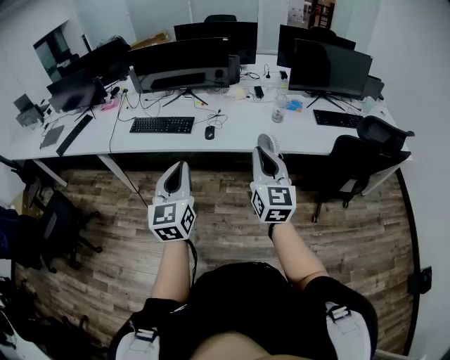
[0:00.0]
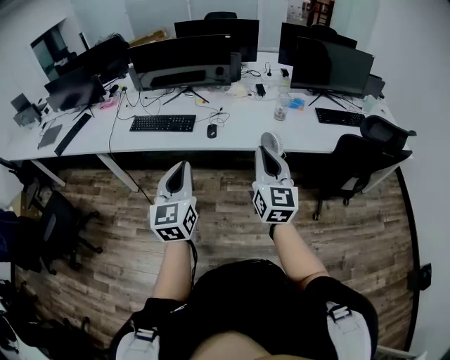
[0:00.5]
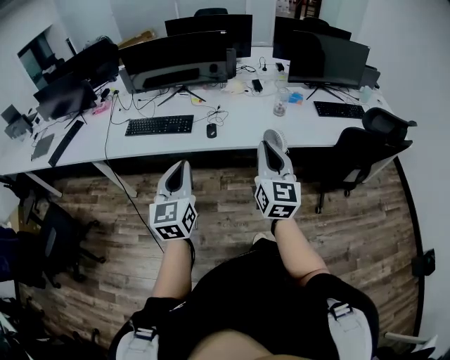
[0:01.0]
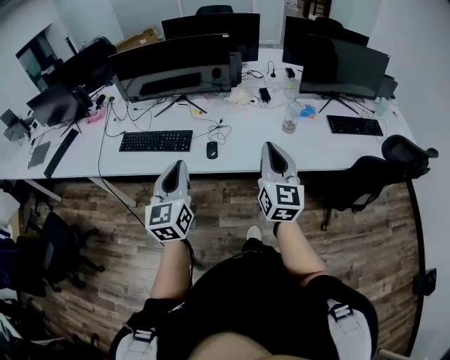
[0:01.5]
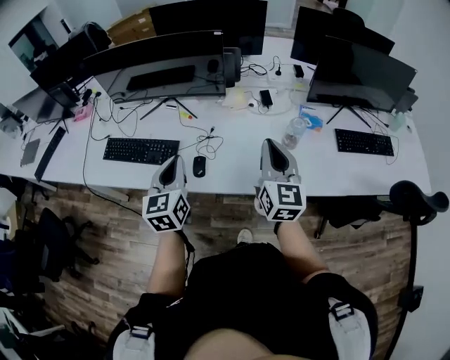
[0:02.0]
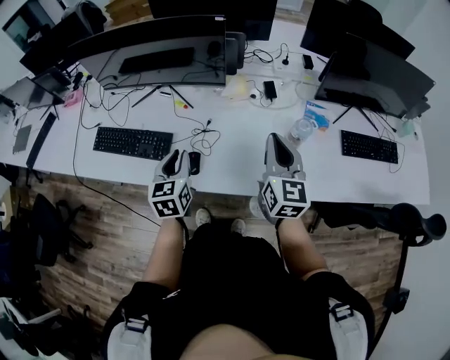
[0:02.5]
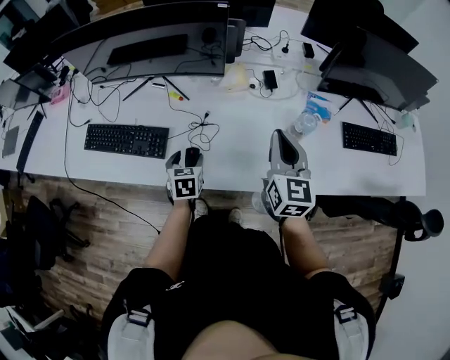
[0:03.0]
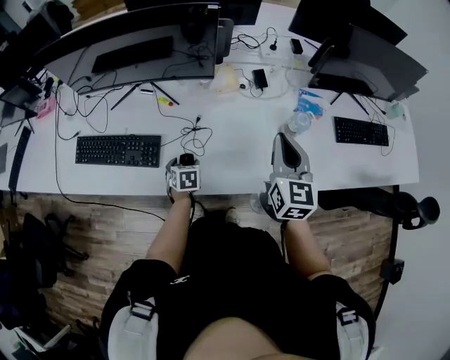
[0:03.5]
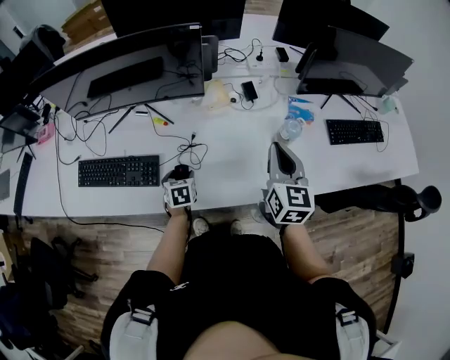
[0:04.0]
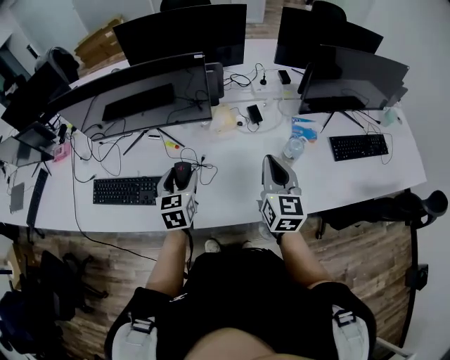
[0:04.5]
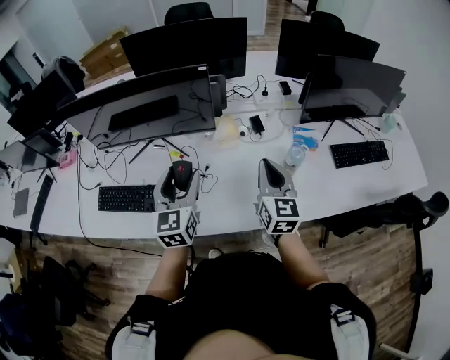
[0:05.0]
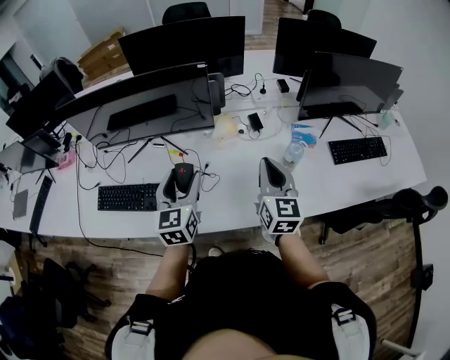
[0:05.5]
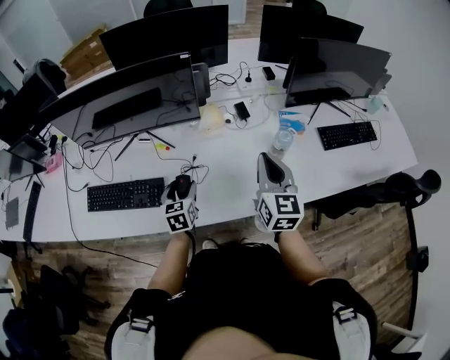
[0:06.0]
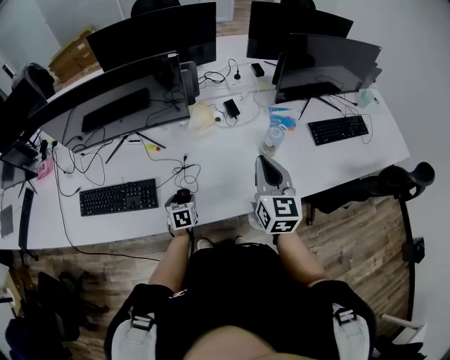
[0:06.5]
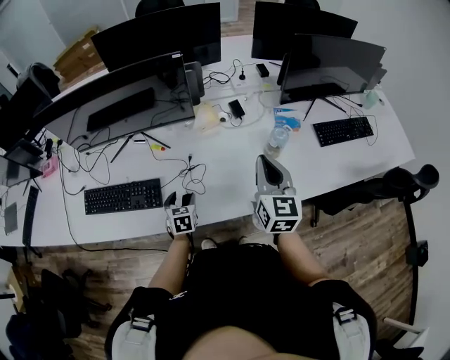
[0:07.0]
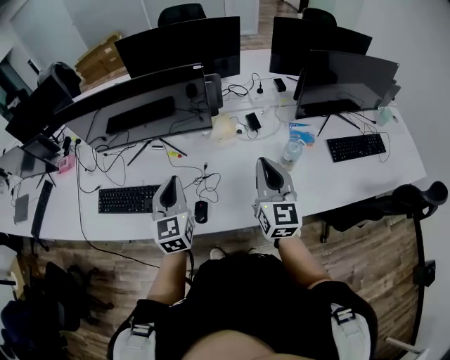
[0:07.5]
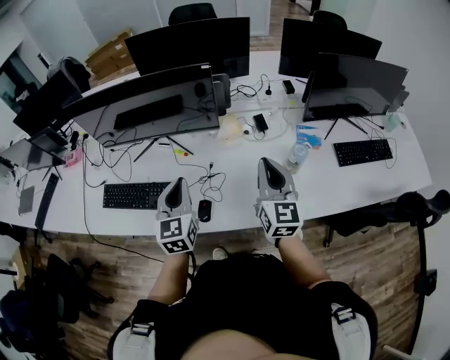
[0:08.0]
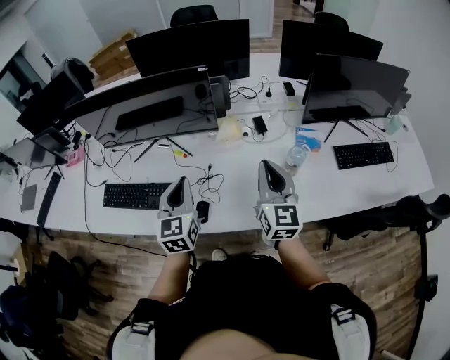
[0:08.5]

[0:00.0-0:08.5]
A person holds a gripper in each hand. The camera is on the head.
0:00.0 to 0:02.0: The grippers both shift forward by some 35 cm.
0:02.0 to 0:04.0: The right gripper moves forward and downward, approximately 10 cm. The left gripper is displaced downward and forward by some 30 cm, angles its fingers downward, by approximately 40 degrees, and opens.
0:04.0 to 0:06.5: The left gripper travels upward and back again, roughly 30 cm each way.
0:06.5 to 0:08.5: The left gripper shifts roughly 30 cm upward, points its fingers roughly 40 degrees further upward, and closes its fingers.

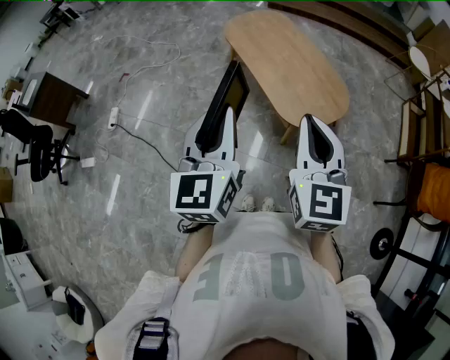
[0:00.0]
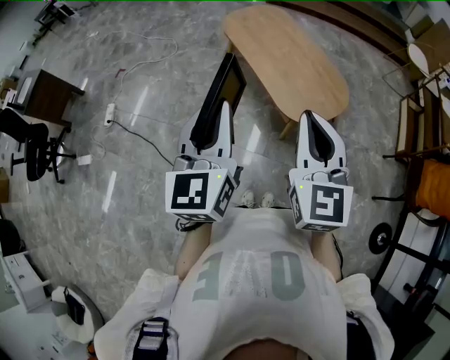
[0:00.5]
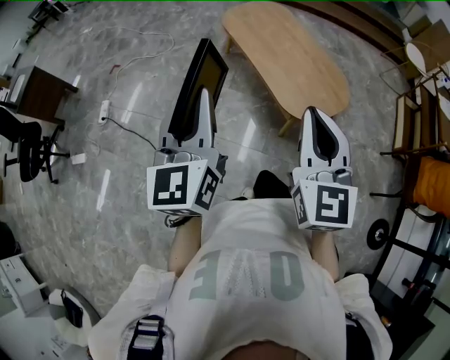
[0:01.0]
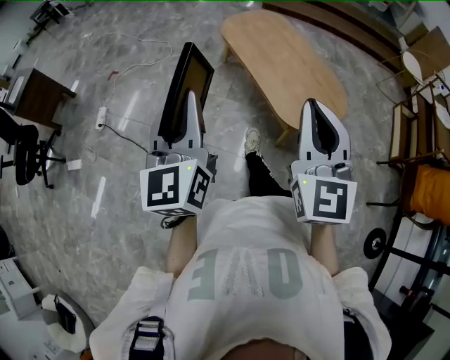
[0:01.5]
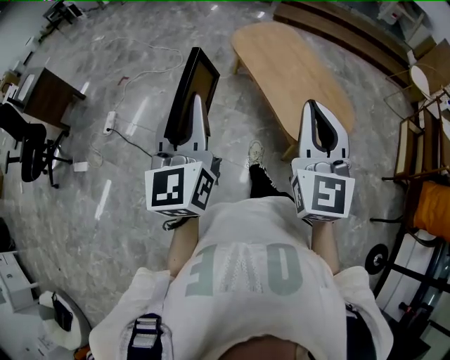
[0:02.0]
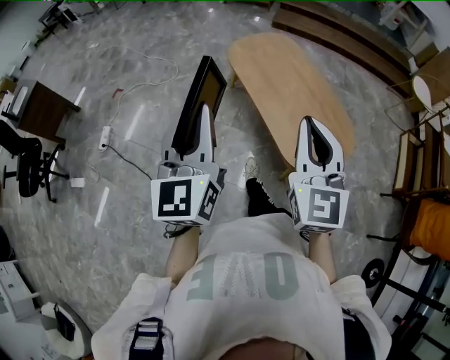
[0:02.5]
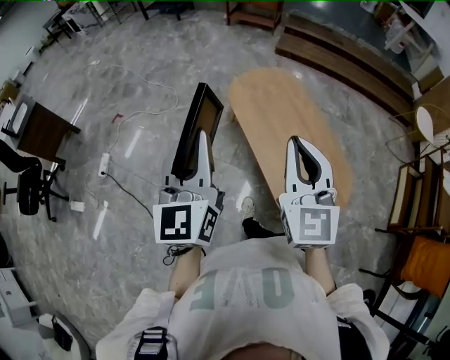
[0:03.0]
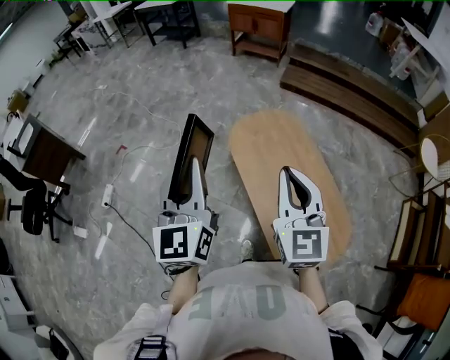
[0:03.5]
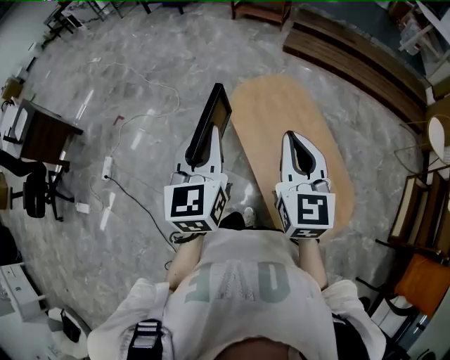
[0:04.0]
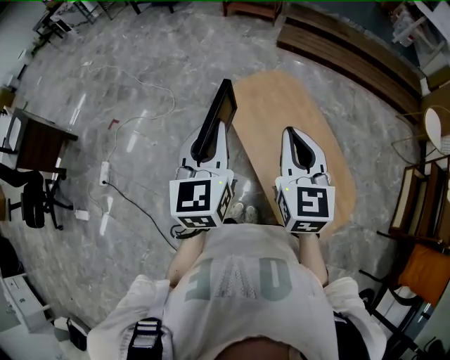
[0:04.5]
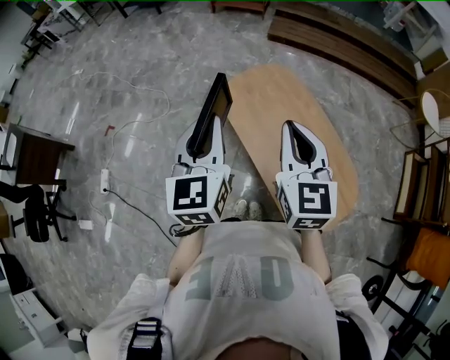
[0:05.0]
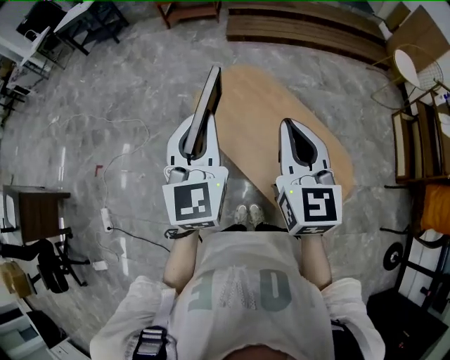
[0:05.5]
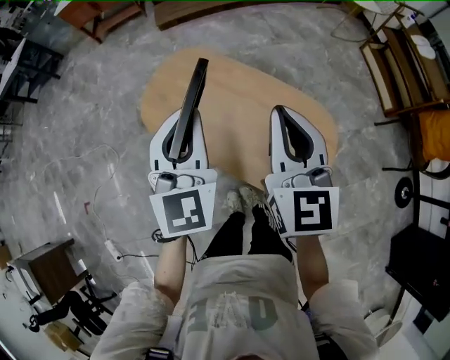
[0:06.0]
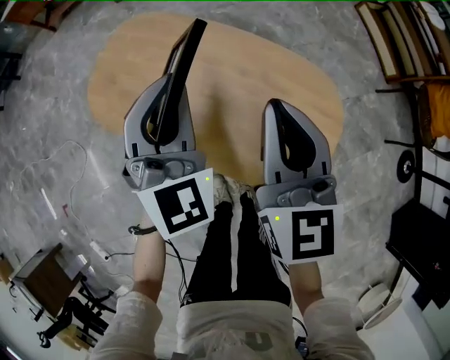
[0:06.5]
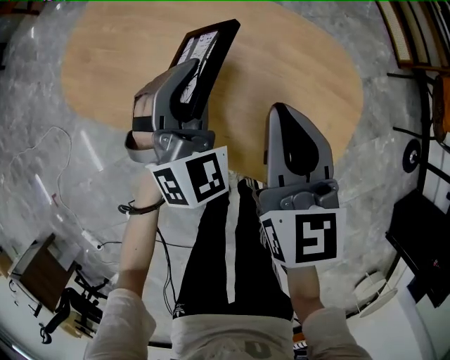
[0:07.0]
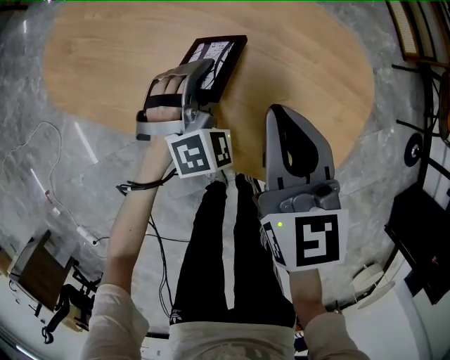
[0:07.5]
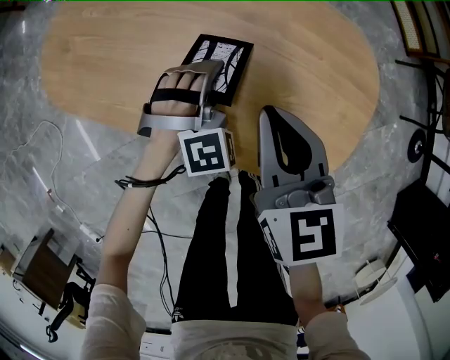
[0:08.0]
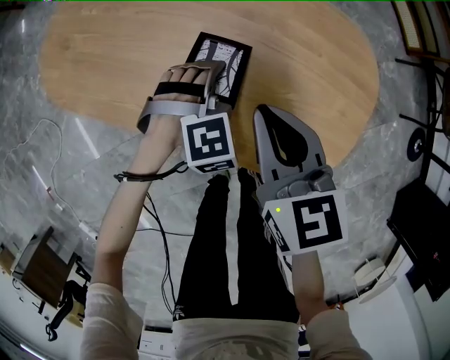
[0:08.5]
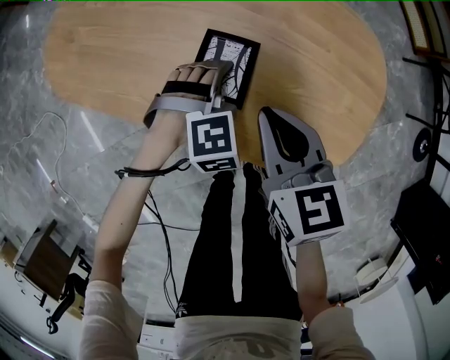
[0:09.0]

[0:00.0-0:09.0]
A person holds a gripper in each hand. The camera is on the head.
0:00.0 to 0:02.0: The right gripper is displaced forward and to the left by some 10 cm, while the left gripper shifts about 15 cm to the left and forward.
0:02.0 to 0:04.5: Both grippers are carried forward, approximately 50 cm.
0:04.5 to 0:07.0: Both grippers travel together downward, about 35 cm. The left gripper rotates around the line of its fingers by roughly 60 degrees, clockwise from behind. Meanwhile the right gripper swivels roughly 40 degrees.
0:07.0 to 0:09.0: The right gripper shifts roughly 10 cm downward, and turns by some 20 degrees, while the left gripper heads downward, covering some 20 cm, points its fingers roughly 40 degrees further downward, and opens up.

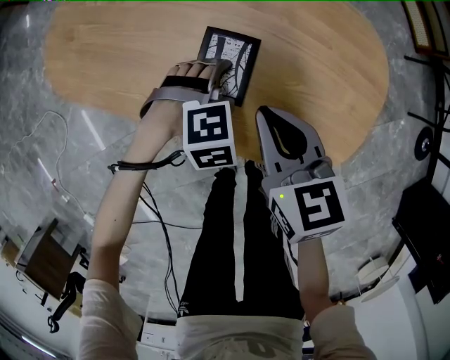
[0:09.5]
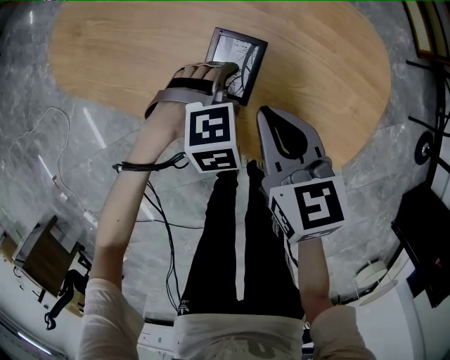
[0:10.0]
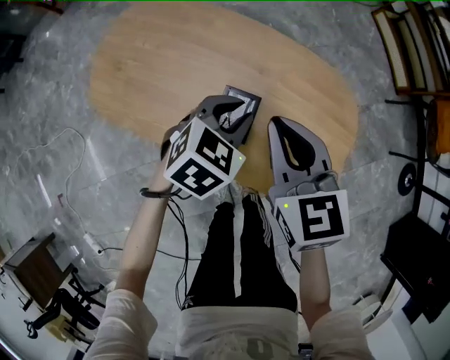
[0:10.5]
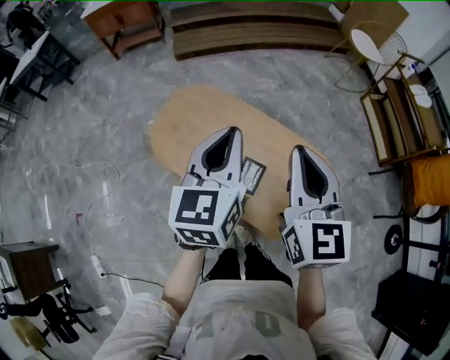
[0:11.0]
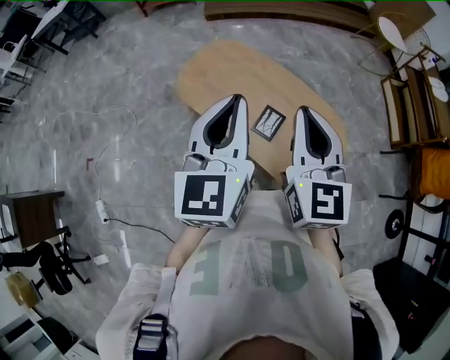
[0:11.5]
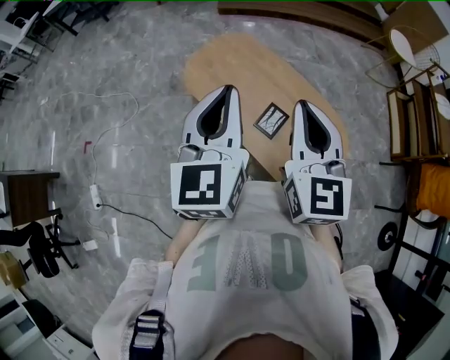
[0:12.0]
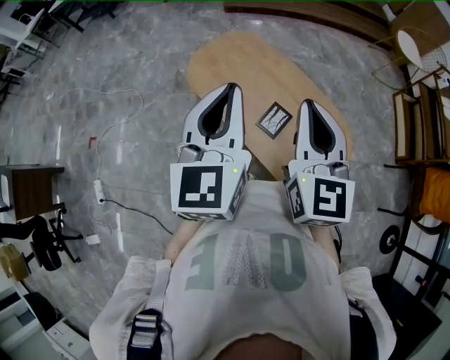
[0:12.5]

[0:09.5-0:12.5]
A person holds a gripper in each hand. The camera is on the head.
0:09.5 to 0:11.0: Both grippers move upward, approximately 50 cm. The right gripper angles its fingers upward, by approximately 30 degrees, while the left gripper angles its fingers upward, by approximately 60 degrees, and closes its fingers.
0:11.0 to 0:12.5: Both grippers travel together backward and to the left, some 15 cm. The left gripper rotates about 20 degrees.

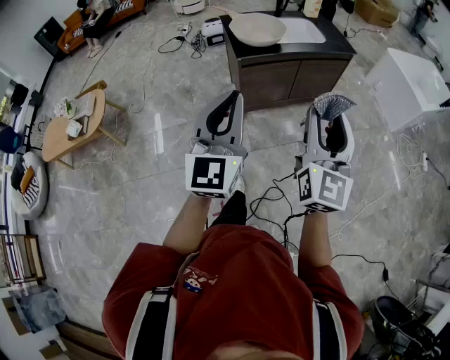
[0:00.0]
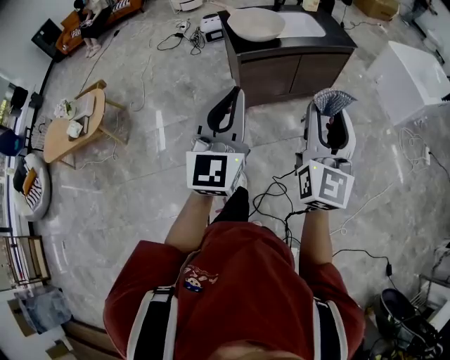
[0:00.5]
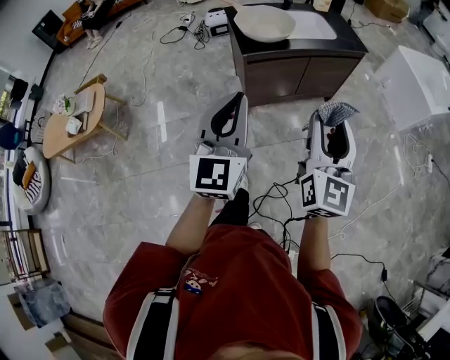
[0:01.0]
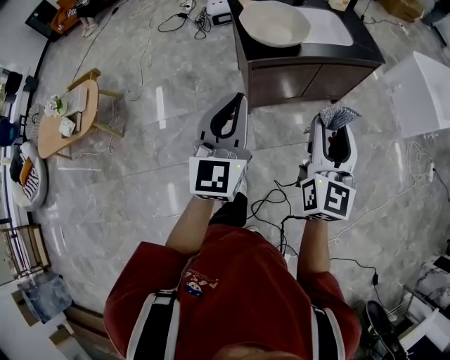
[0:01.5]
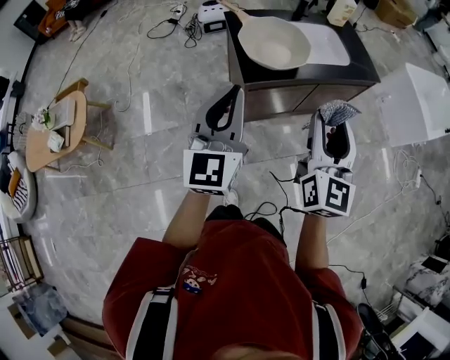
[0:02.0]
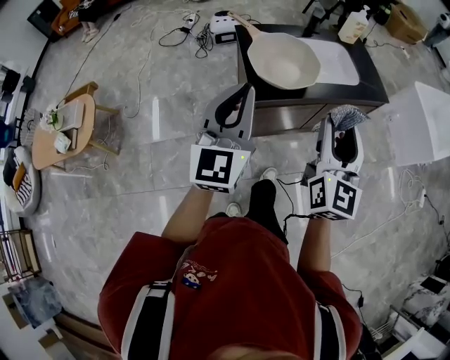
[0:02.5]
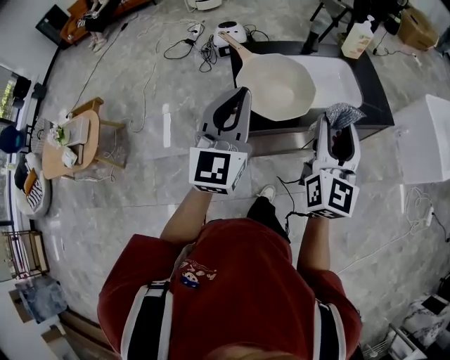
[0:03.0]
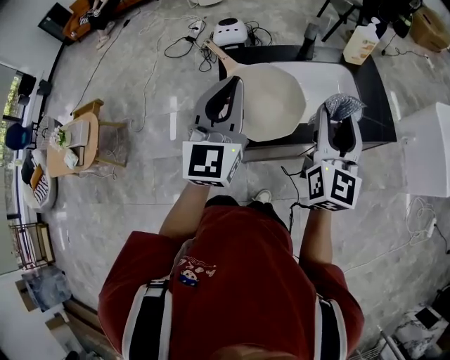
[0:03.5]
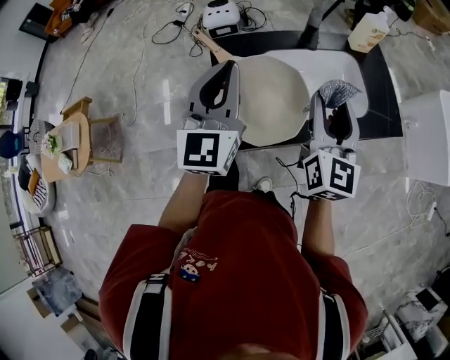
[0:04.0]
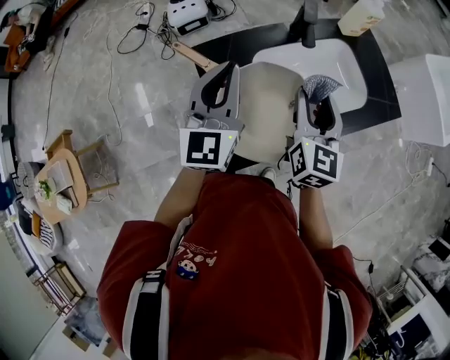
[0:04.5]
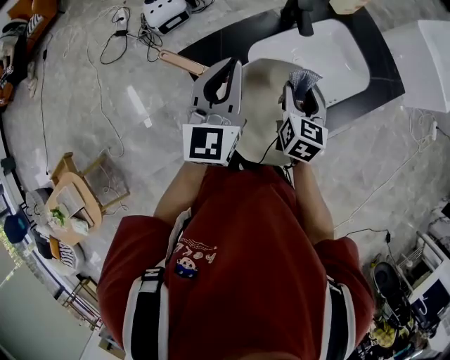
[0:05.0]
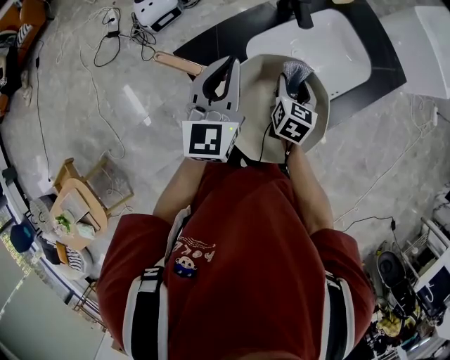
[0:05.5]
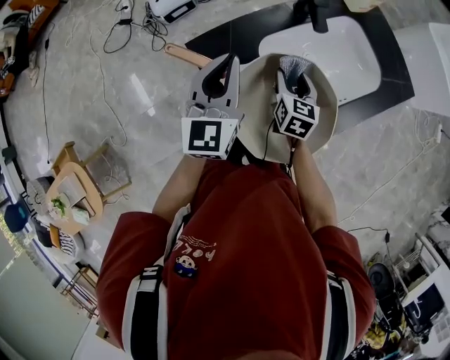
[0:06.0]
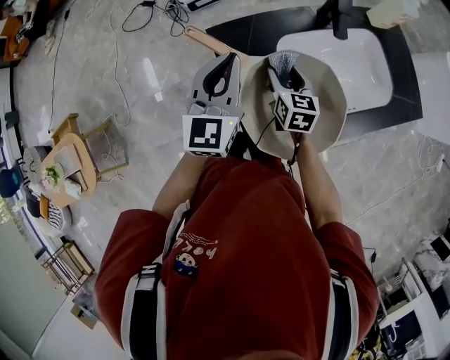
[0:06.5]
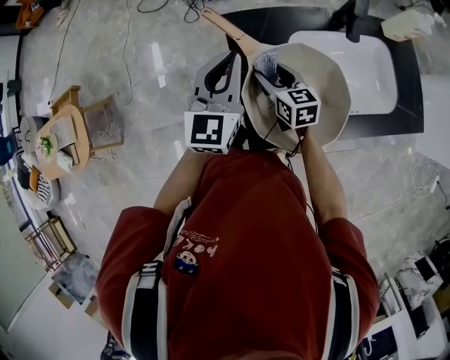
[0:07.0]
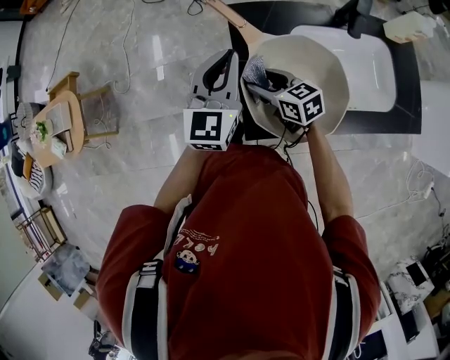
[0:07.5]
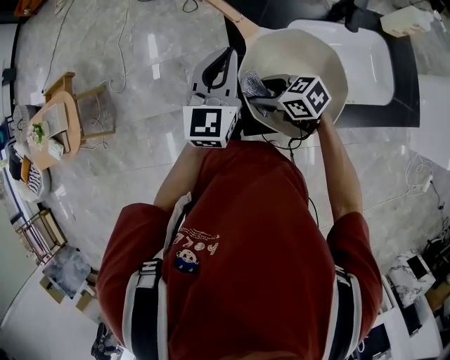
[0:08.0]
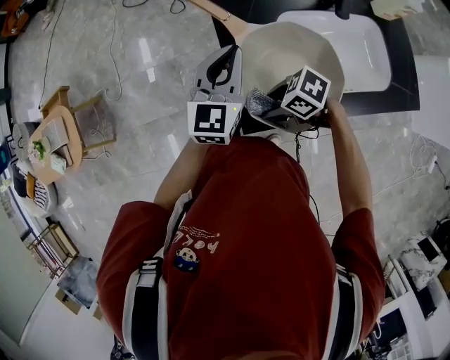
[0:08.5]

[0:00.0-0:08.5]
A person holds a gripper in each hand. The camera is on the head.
0:00.0 to 0:02.0: The two grippers go some 25 cm forward.
0:02.0 to 0:04.0: Both grippers move forward, some 35 cm.
0:04.0 to 0:06.5: The right gripper goes some 25 cm downward, and angles its fingers downward, by roughly 30 degrees. The left gripper shifts approximately 15 cm downward.
0:06.5 to 0:08.5: The left gripper shifts by some 5 cm. The right gripper shifts by some 20 cm, and turns by some 90 degrees.
